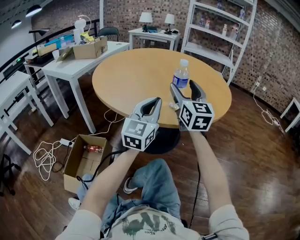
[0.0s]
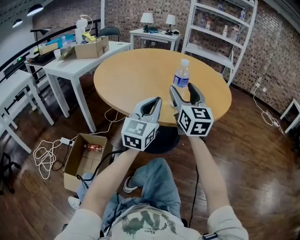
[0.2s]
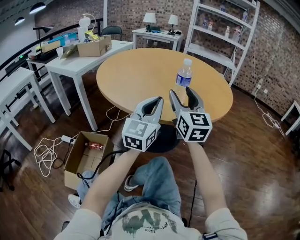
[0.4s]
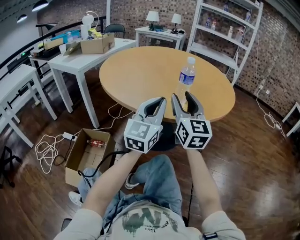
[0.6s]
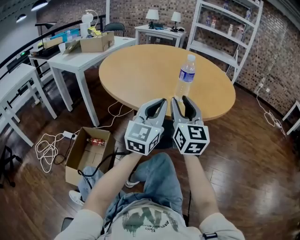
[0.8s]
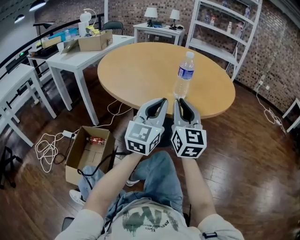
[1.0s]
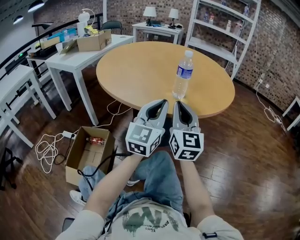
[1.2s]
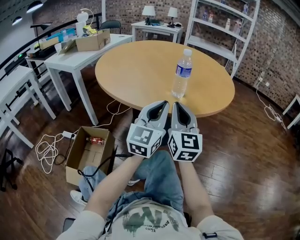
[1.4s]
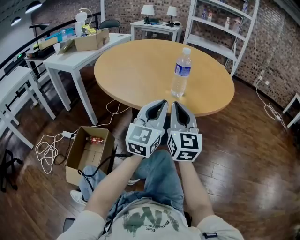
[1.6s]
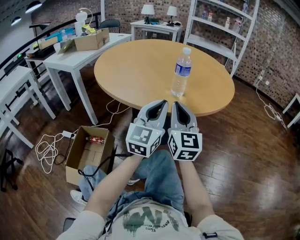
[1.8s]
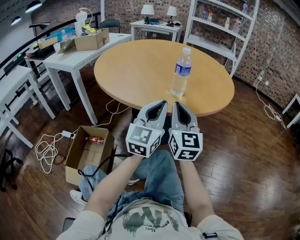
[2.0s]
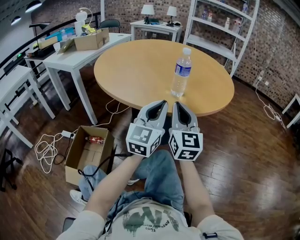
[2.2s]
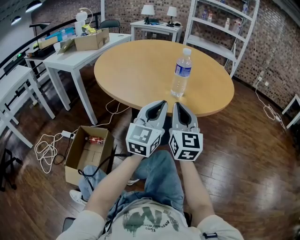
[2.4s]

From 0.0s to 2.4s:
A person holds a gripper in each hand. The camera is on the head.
From 0.0s to 1.2s: The left gripper shifts by some 5 cm. Meanwhile the right gripper is displaced backward and downward by about 10 cm, and closes.
From 1.2s to 2.4s: Both grippers stay put.

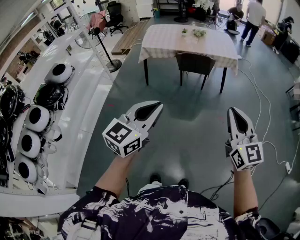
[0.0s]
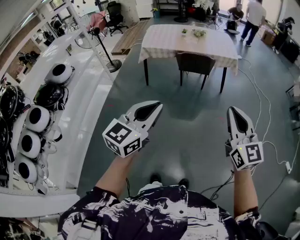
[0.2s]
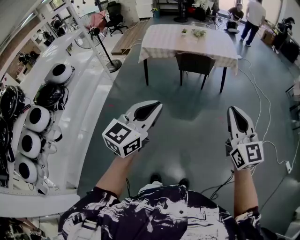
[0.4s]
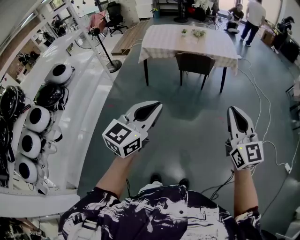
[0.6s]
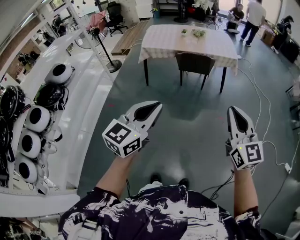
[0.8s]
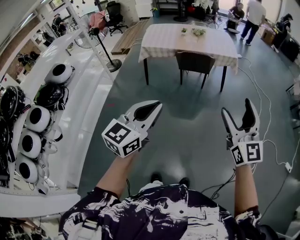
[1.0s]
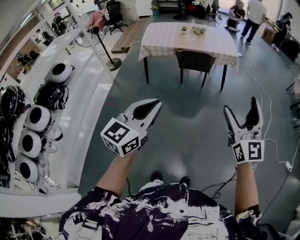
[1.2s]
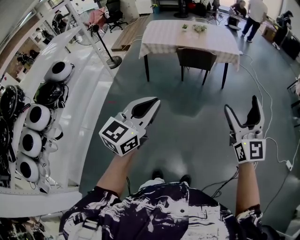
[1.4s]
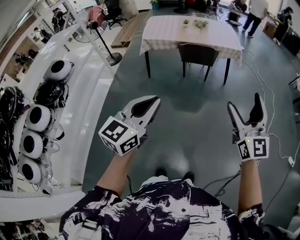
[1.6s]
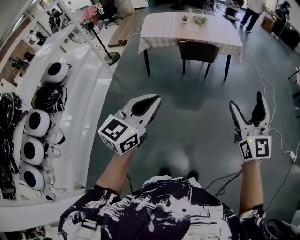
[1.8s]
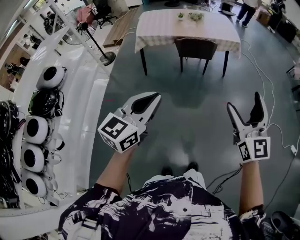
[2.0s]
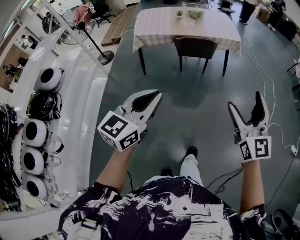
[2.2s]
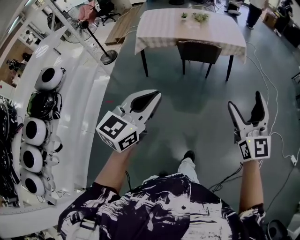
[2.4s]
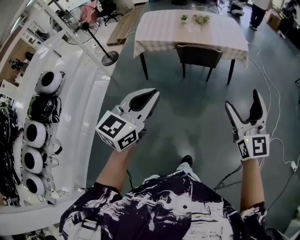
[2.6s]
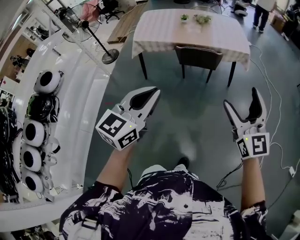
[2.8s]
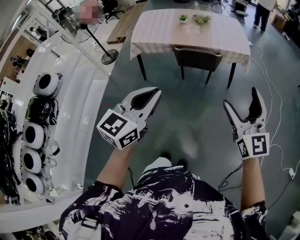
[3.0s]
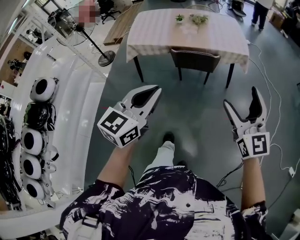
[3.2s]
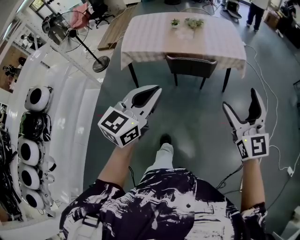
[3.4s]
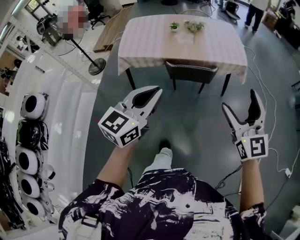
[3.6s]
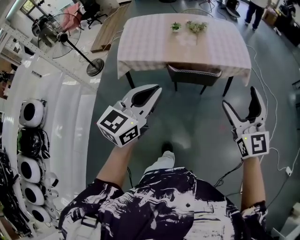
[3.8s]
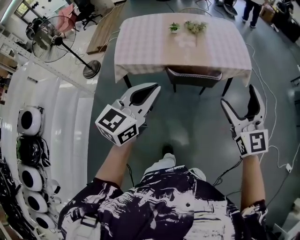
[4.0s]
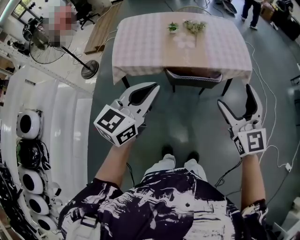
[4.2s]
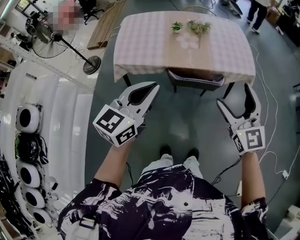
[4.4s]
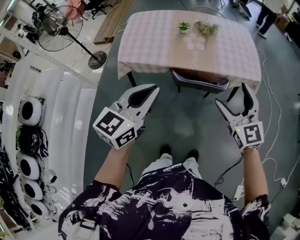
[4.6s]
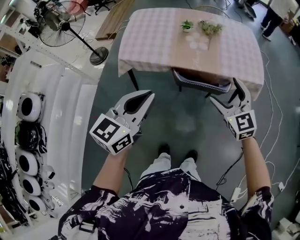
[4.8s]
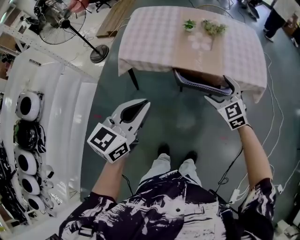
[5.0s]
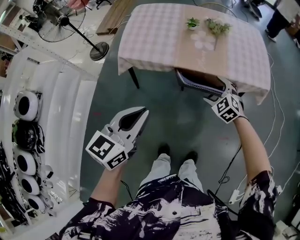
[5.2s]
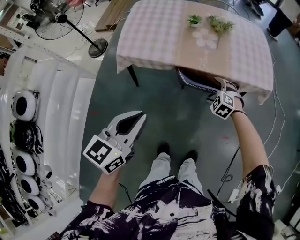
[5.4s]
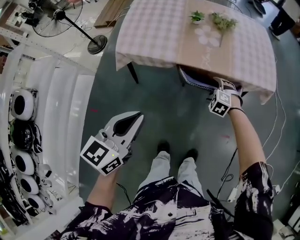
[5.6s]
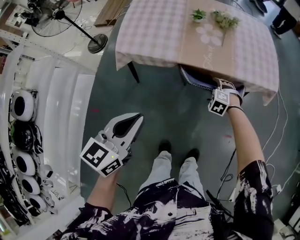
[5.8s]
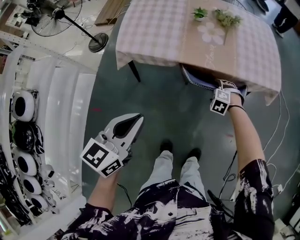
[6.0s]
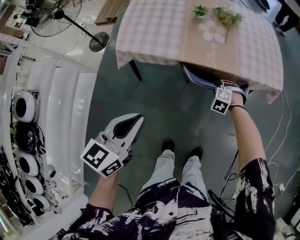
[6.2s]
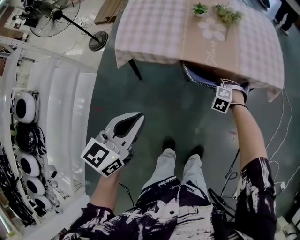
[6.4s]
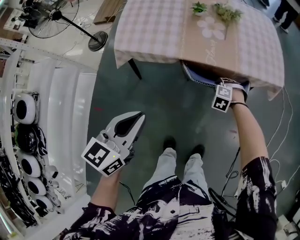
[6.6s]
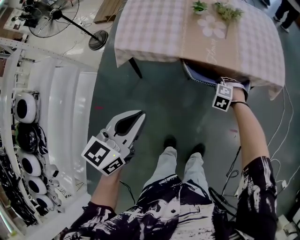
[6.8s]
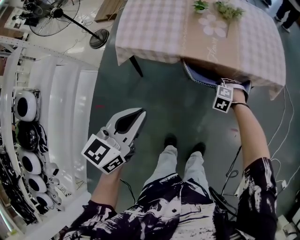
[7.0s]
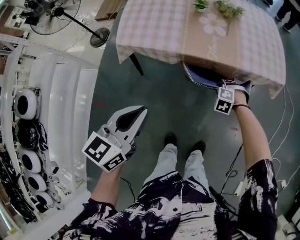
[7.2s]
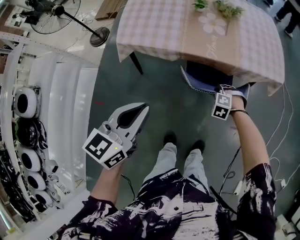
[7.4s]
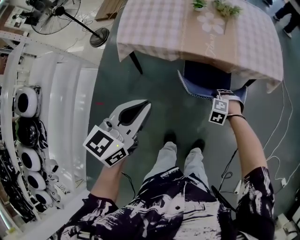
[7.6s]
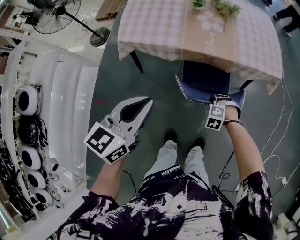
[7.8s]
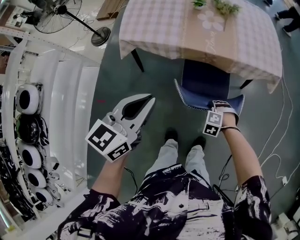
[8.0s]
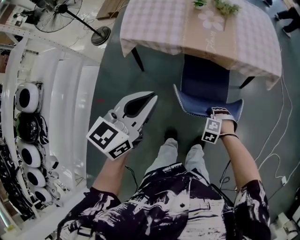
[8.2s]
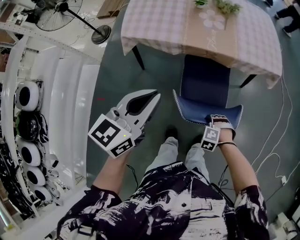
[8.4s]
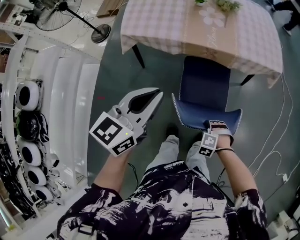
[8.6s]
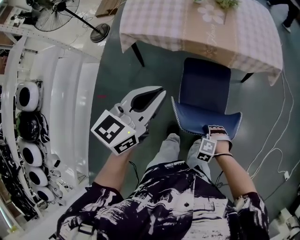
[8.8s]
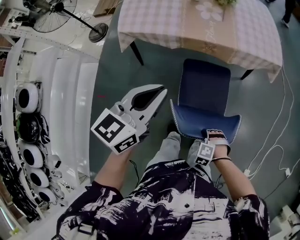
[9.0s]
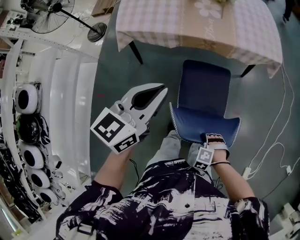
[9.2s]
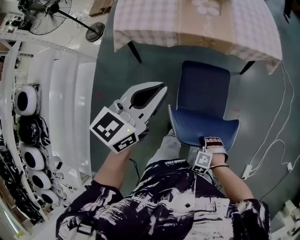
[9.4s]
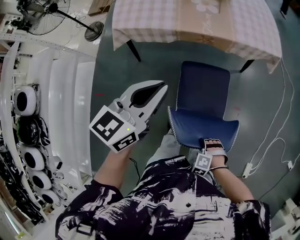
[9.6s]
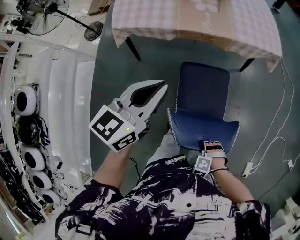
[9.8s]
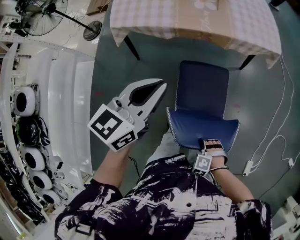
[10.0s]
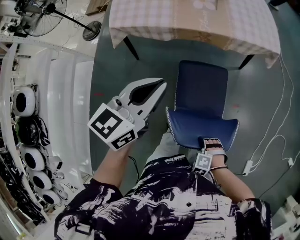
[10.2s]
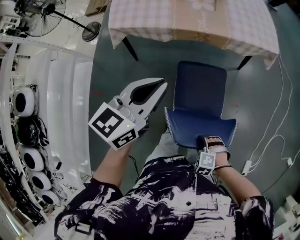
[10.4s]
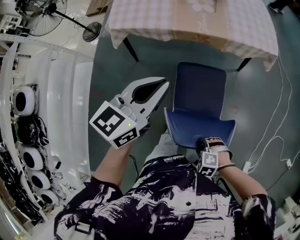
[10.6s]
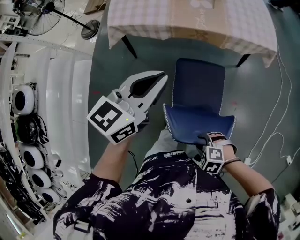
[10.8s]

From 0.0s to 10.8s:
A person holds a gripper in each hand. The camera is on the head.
From 0.0s to 1.6s: The right gripper opens.
From 1.6s to 3.0s: Both grippers travel together forward, roughly 30 cm.
From 3.0s to 4.6s: The grippers both shift forward by roughly 35 cm.
From 4.6s to 6.2s: The right gripper goes approximately 40 cm downward, tips its fingers downward by roughly 60 degrees, and closes up, while the left gripper travels downward and to the left by some 15 cm.
From 6.2s to 7.8s: The right gripper shifts by about 15 cm.
From 7.8s to 9.2s: The right gripper shifts by roughly 25 cm.
From 9.2s to 10.8s: The right gripper heads upward, covering about 10 cm, and rotates approximately 20 degrees.

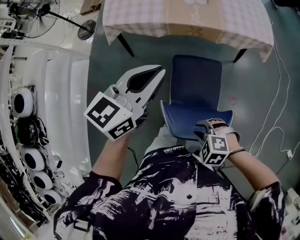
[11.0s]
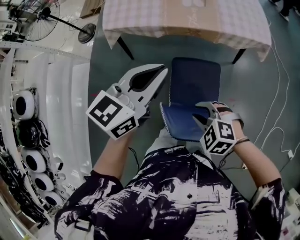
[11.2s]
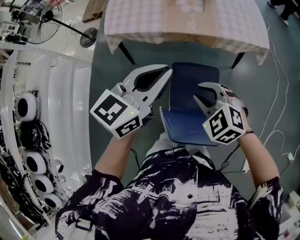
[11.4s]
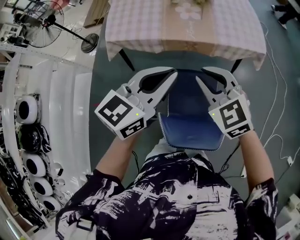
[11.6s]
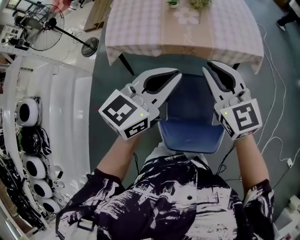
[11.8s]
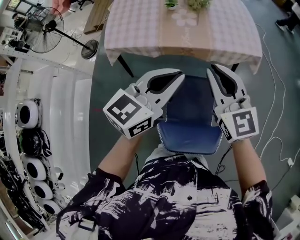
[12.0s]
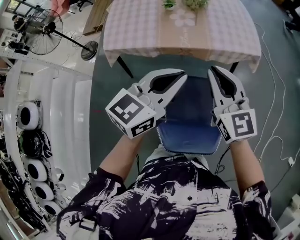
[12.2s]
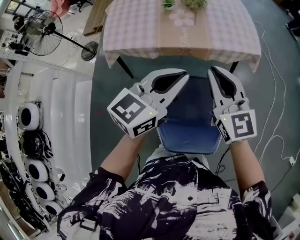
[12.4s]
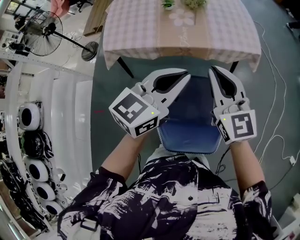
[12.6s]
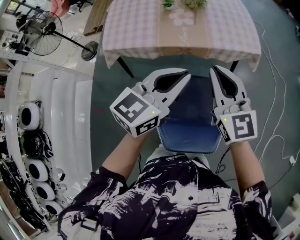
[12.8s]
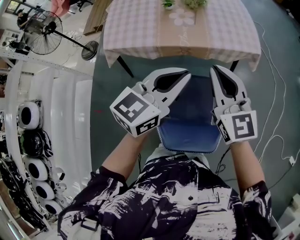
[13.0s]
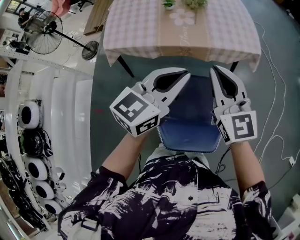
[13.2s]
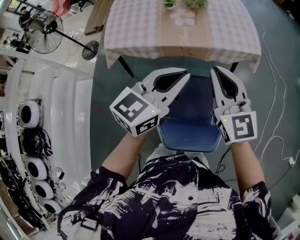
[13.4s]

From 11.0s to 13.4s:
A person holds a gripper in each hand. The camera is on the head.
From 11.0s to 12.2s: The left gripper ends up about 15 cm from where it was; the right gripper moves upward, roughly 25 cm, and tilts its fingers approximately 60 degrees upward.
From 12.2s to 13.4s: The grippers make only small movements.

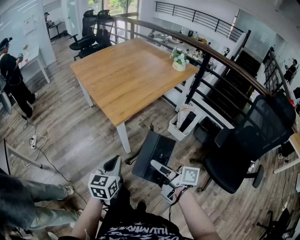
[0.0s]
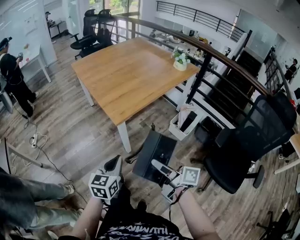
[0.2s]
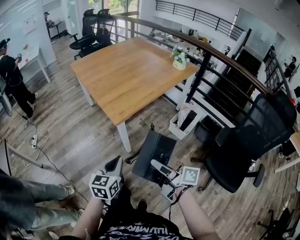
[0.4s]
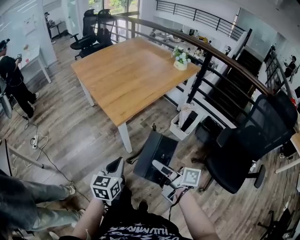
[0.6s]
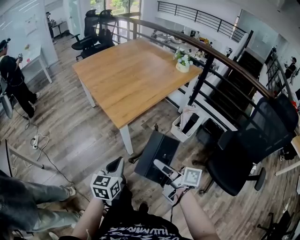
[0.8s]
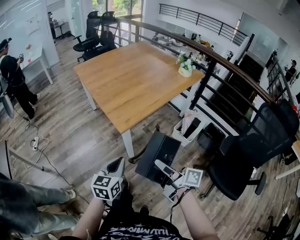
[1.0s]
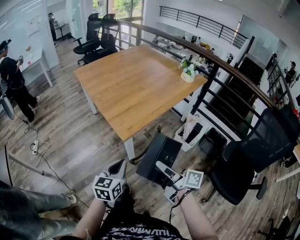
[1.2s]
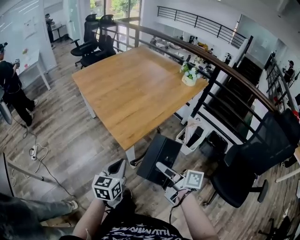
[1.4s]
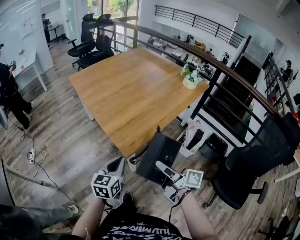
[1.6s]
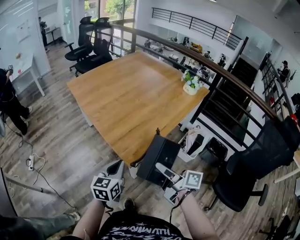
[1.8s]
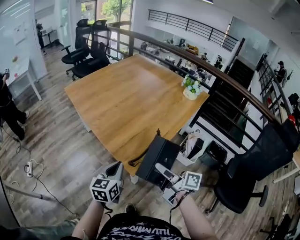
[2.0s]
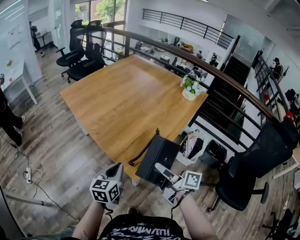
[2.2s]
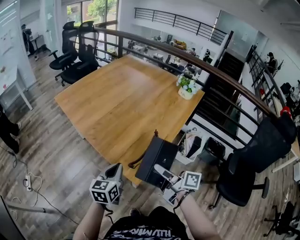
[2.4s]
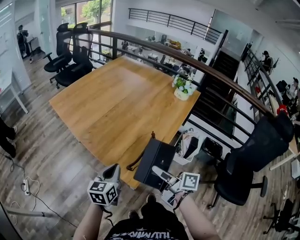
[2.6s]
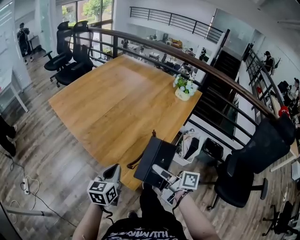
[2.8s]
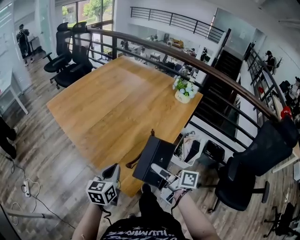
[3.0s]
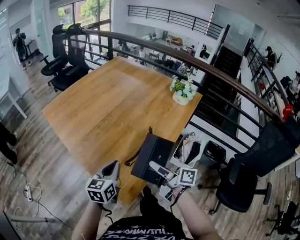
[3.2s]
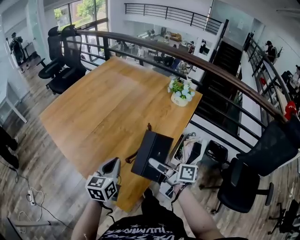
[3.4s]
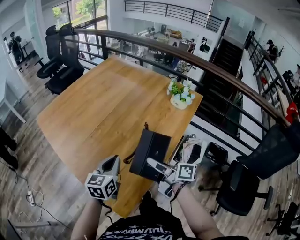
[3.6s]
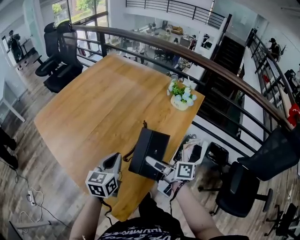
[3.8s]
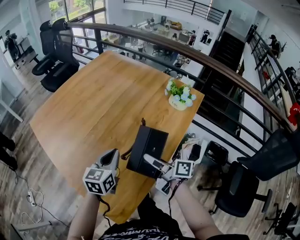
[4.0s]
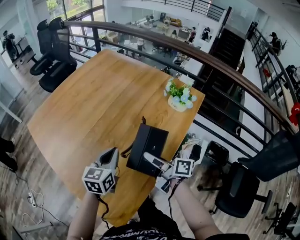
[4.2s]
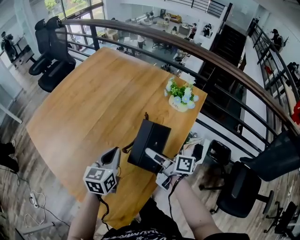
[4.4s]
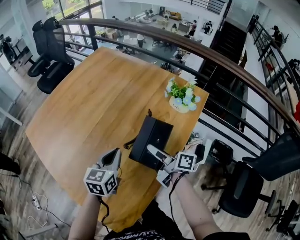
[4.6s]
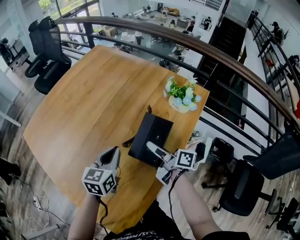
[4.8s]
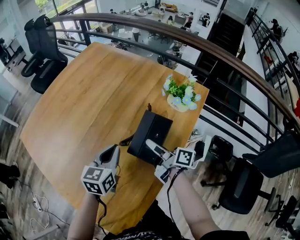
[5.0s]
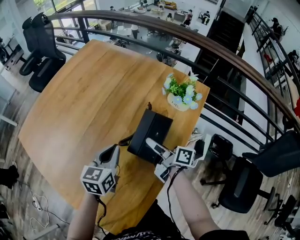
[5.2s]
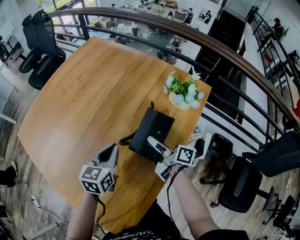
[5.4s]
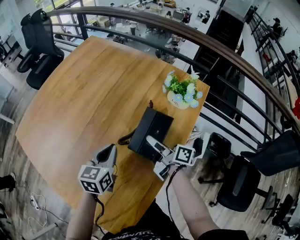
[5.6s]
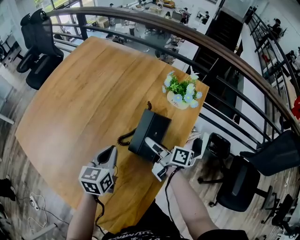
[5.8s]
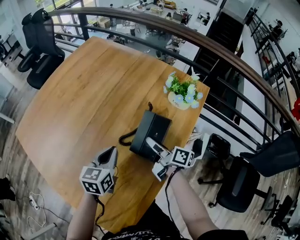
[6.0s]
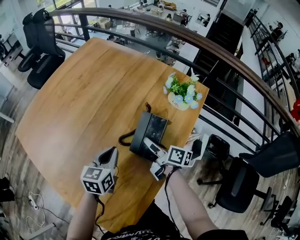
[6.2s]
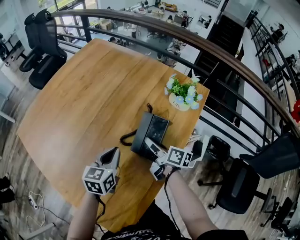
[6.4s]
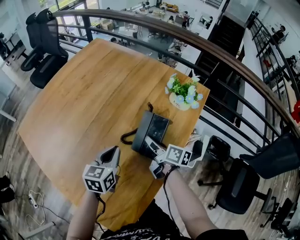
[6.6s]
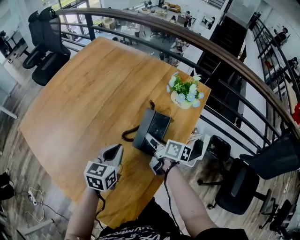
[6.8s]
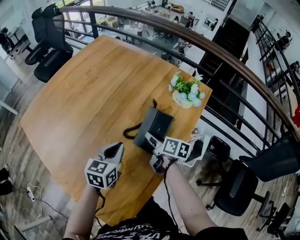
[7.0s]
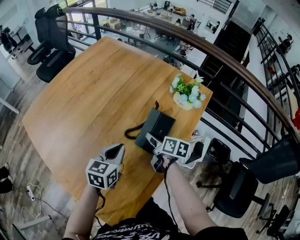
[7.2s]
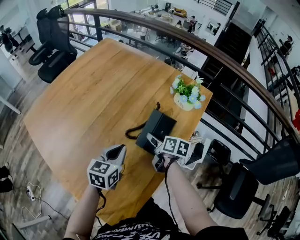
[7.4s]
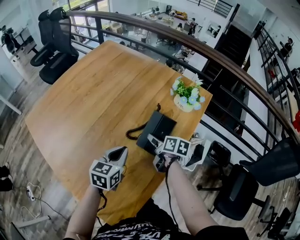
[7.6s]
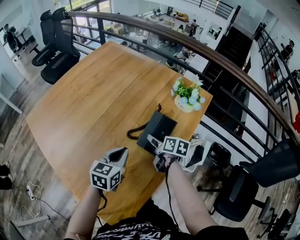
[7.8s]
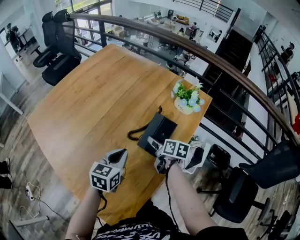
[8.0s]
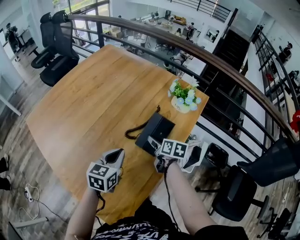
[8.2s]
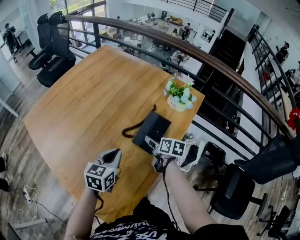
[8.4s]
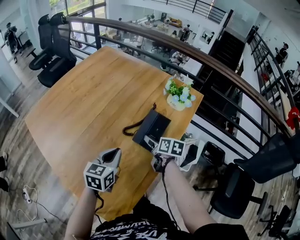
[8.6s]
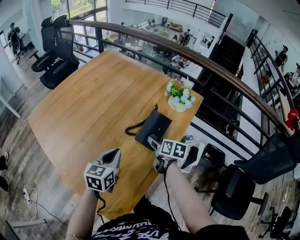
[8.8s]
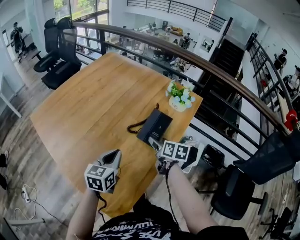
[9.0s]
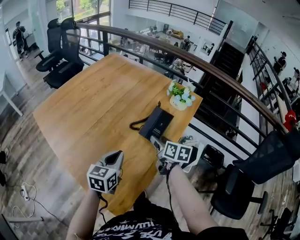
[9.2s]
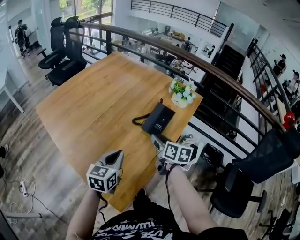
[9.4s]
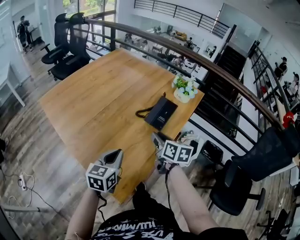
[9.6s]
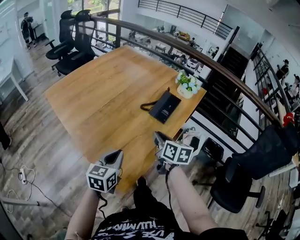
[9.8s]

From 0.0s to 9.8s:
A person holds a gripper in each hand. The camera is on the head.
From 0.0s to 1.4s: Both grippers move forward, about 15 cm.
From 1.4s to 2.8s: Both grippers move forward, some 20 cm.
From 2.8s to 4.2s: Both grippers move forward and to the right, roughly 30 cm.
From 4.2s to 5.6s: The right gripper goes approximately 15 cm forward, downward and to the right, while the left gripper moves forward and downward, approximately 10 cm.
From 5.6s to 7.0s: The right gripper swivels roughly 30 degrees.
From 7.0s to 8.4s: The left gripper goes roughly 5 cm backward. Meanwhile the right gripper opens.
From 8.4s to 9.8s: The right gripper travels backward, upward and to the left by roughly 25 cm, changes its angle by about 20 degrees, and closes up. Meanwhile the left gripper heads backward, covering approximately 25 cm.
